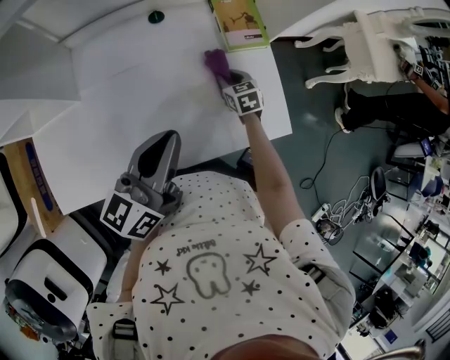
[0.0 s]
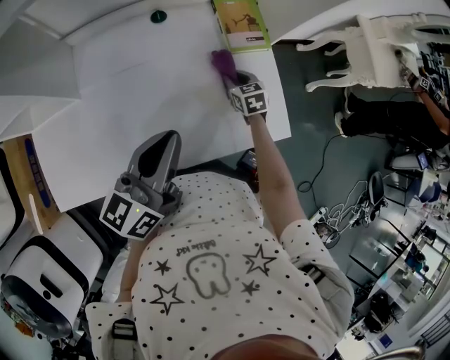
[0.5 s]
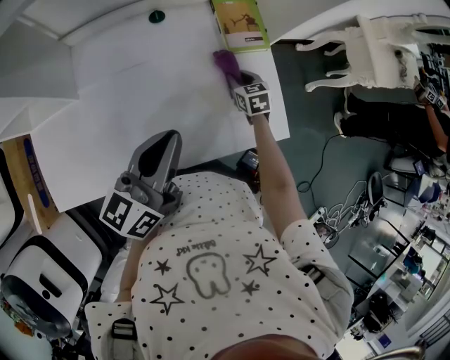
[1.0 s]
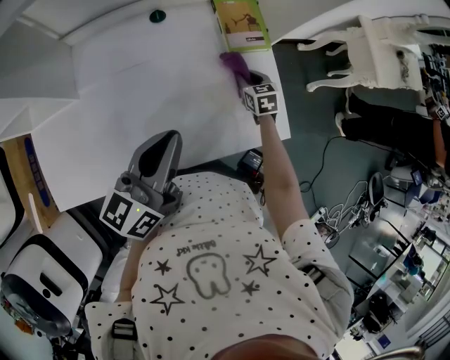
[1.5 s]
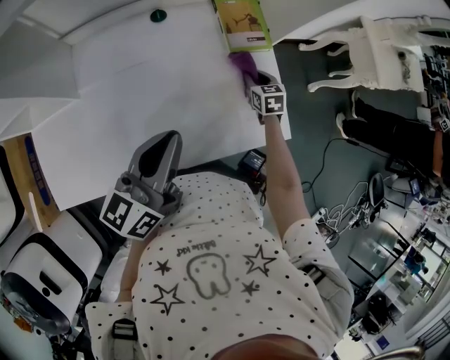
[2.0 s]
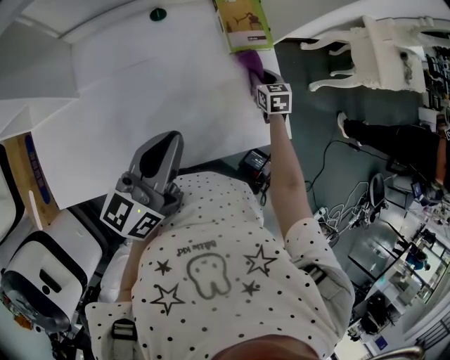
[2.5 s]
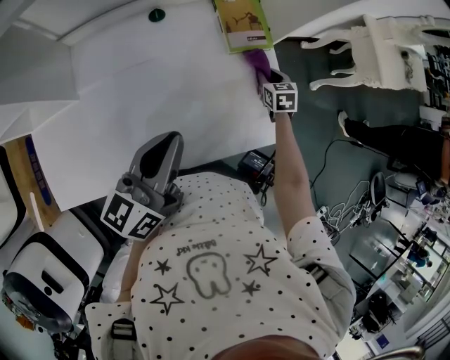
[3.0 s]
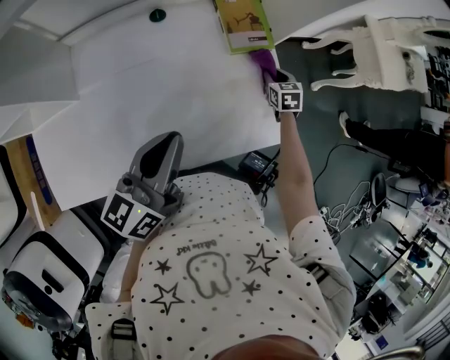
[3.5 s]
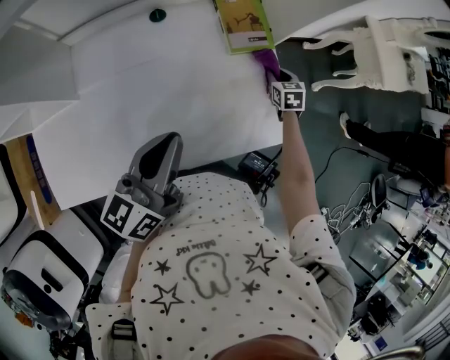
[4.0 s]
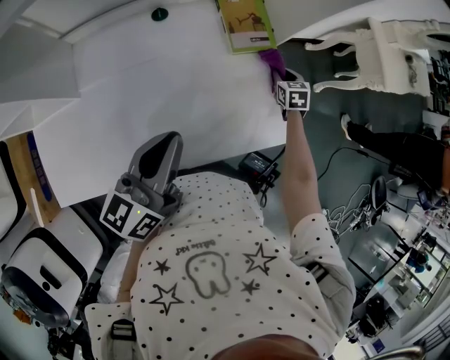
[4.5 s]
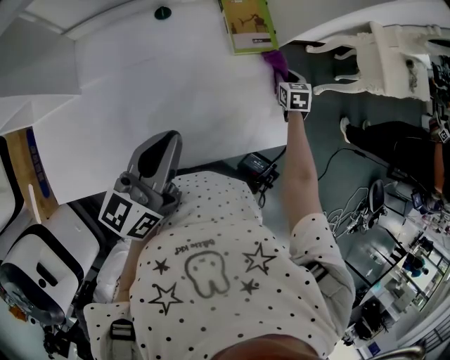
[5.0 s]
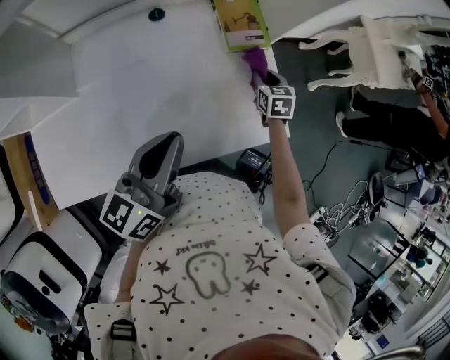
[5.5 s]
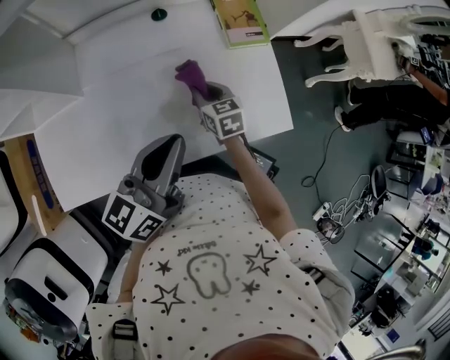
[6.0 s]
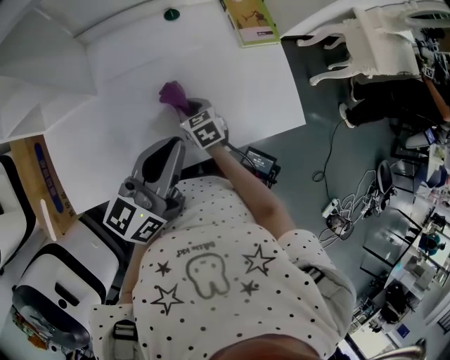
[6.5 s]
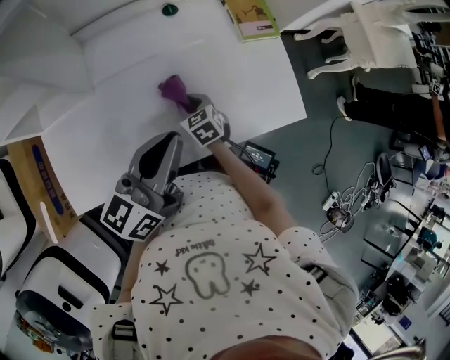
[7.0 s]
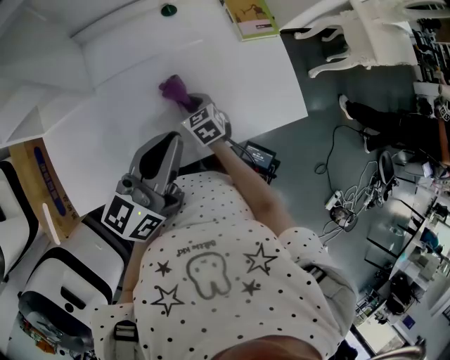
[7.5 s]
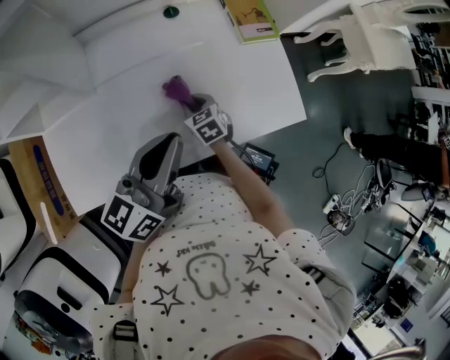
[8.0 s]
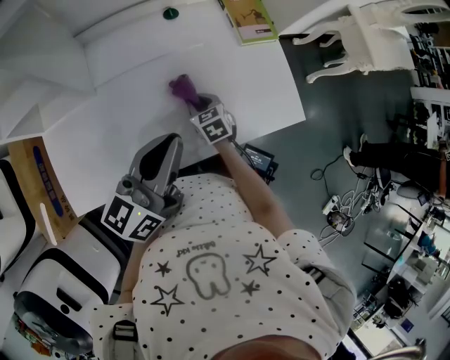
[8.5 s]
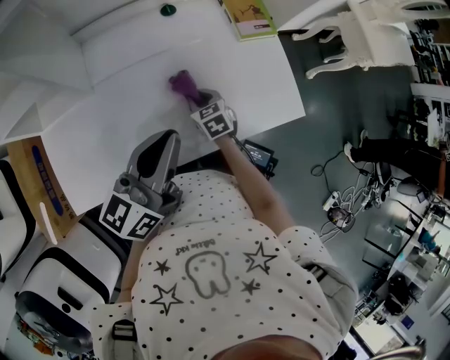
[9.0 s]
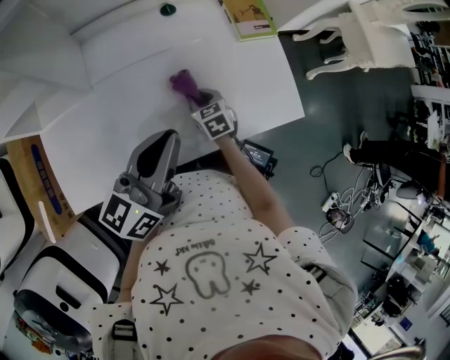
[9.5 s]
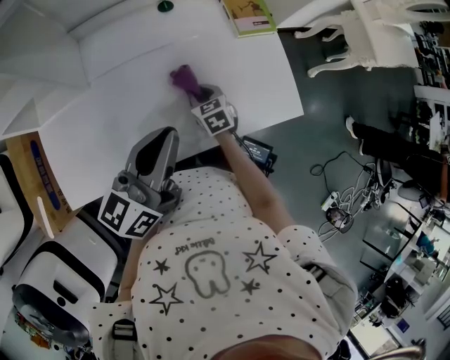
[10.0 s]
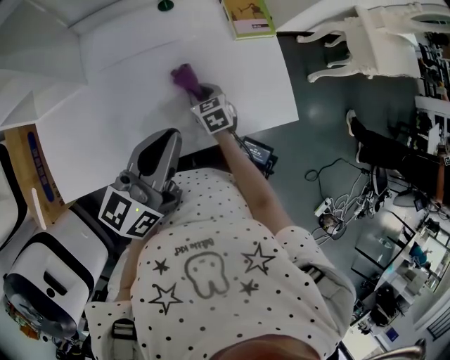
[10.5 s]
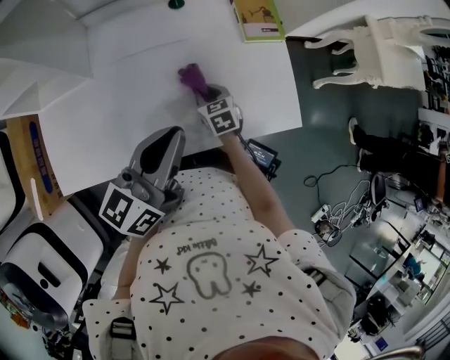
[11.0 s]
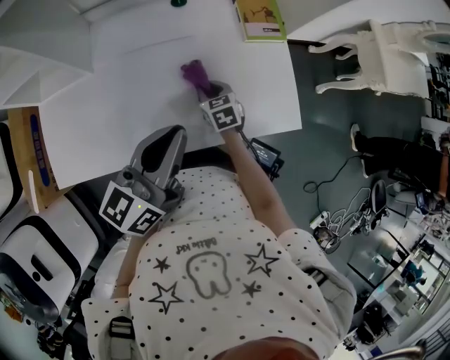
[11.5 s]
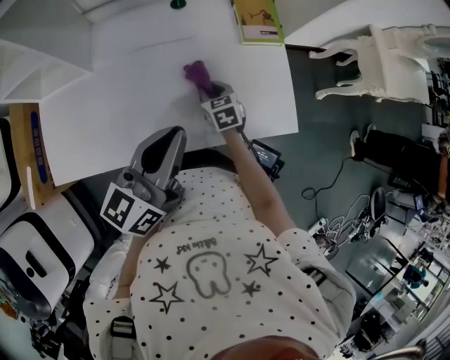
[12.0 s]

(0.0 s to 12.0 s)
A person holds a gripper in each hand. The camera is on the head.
0.0 s - 2.0 s: The right gripper is displaced to the right by some 10 cm.
2.0 s - 4.0 s: The right gripper goes approximately 5 cm to the right.
4.0 s - 6.0 s: The right gripper shifts approximately 30 cm to the left and backward; the left gripper shifts by roughly 5 cm.
6.0 s - 8.0 s: The right gripper travels to the left and downward by about 10 cm, while the left gripper is displaced to the left by about 5 cm.
8.0 s - 10.0 s: The grippers move only a little.
10.0 s - 12.0 s: Both grippers travel together to the right, approximately 5 cm.

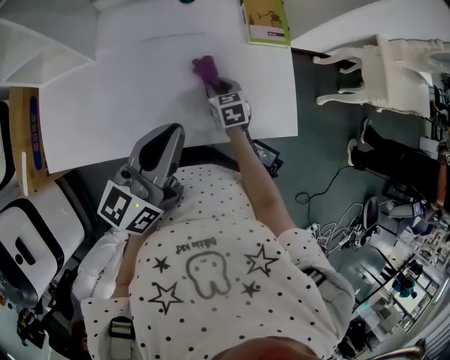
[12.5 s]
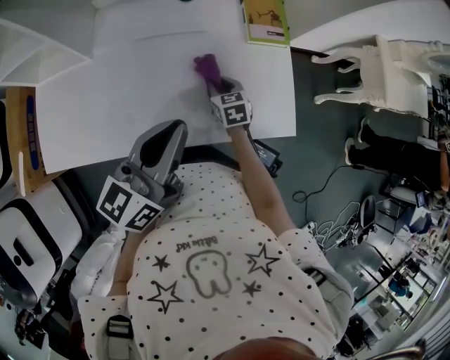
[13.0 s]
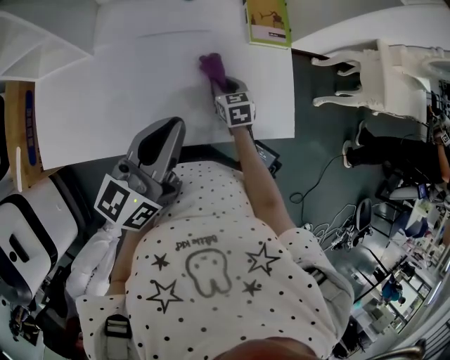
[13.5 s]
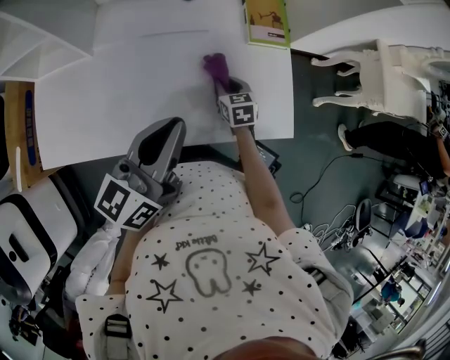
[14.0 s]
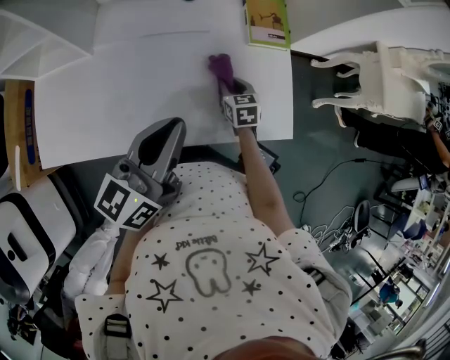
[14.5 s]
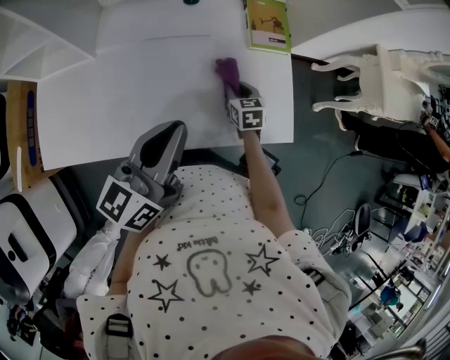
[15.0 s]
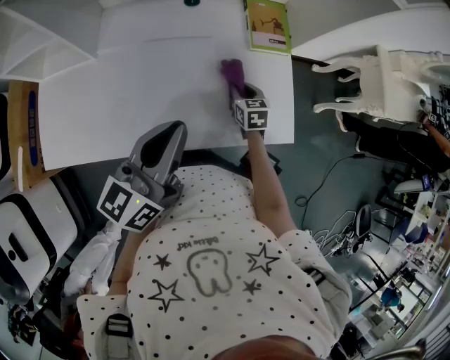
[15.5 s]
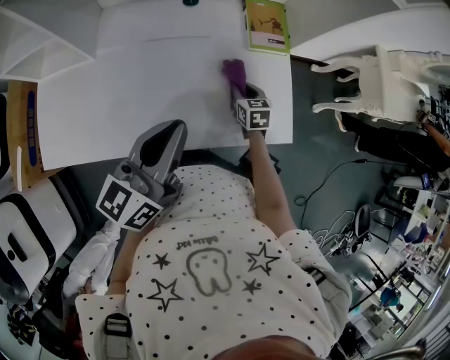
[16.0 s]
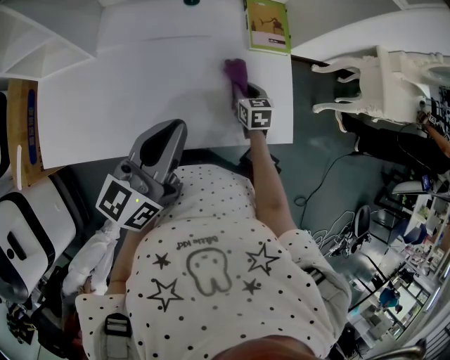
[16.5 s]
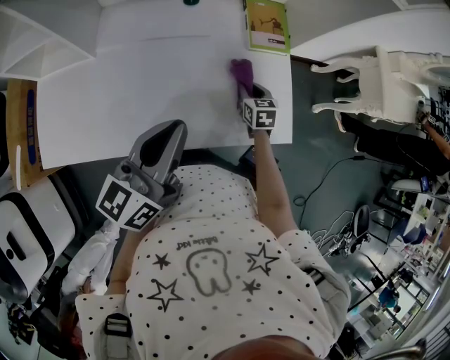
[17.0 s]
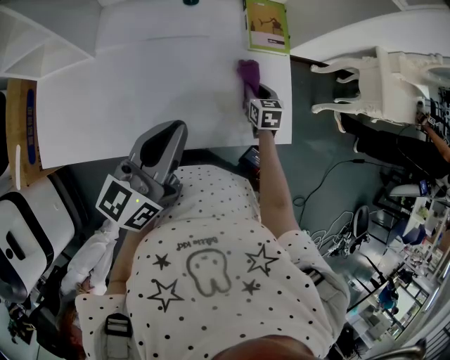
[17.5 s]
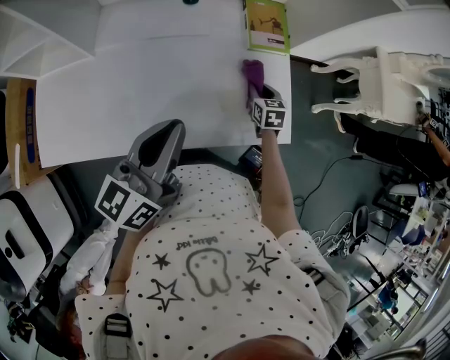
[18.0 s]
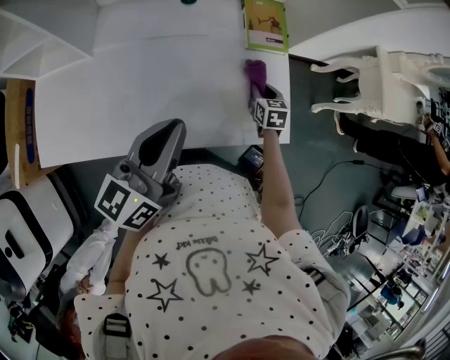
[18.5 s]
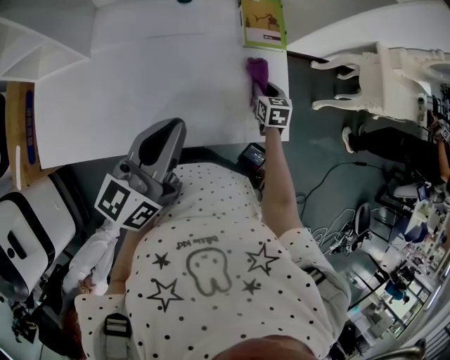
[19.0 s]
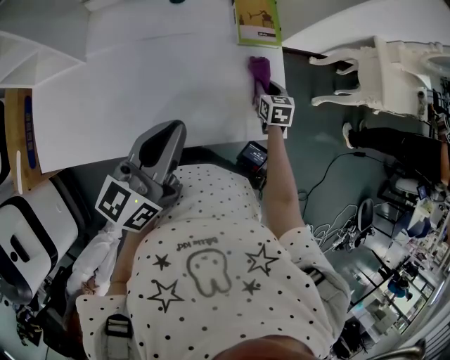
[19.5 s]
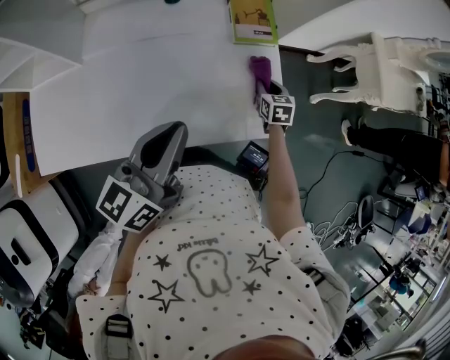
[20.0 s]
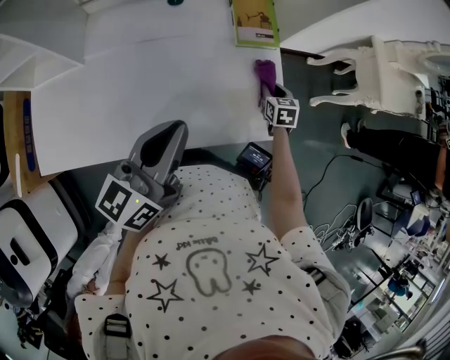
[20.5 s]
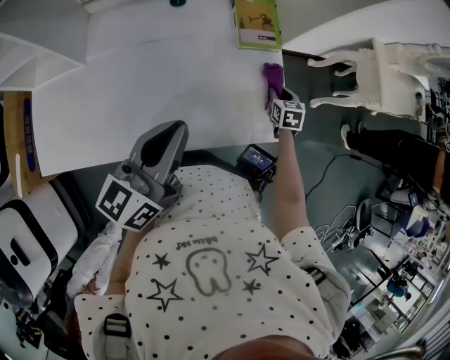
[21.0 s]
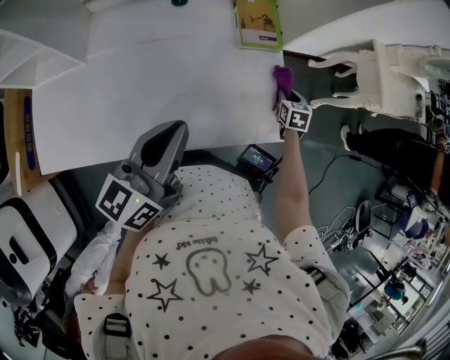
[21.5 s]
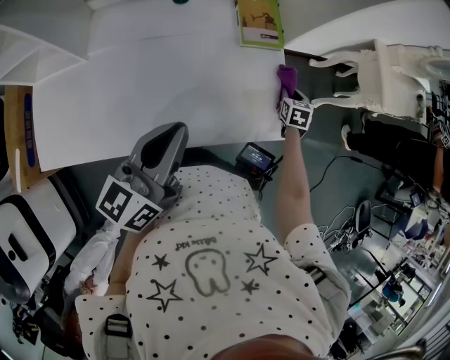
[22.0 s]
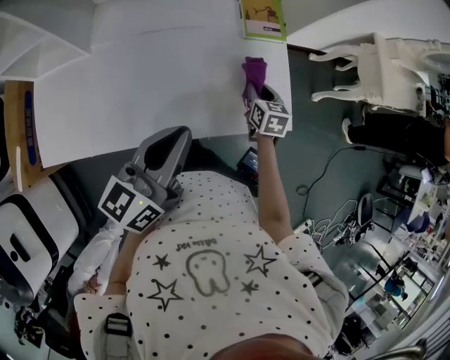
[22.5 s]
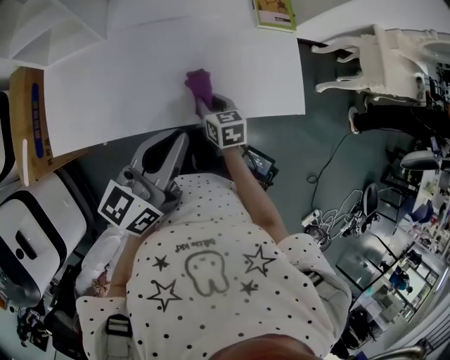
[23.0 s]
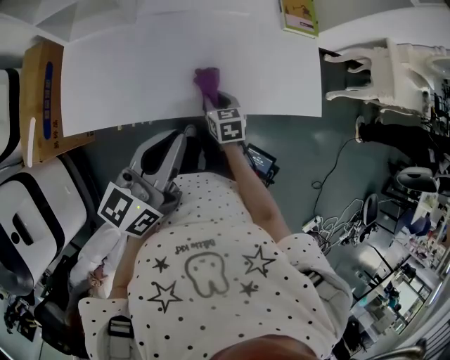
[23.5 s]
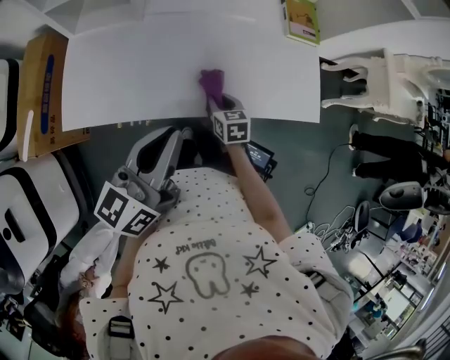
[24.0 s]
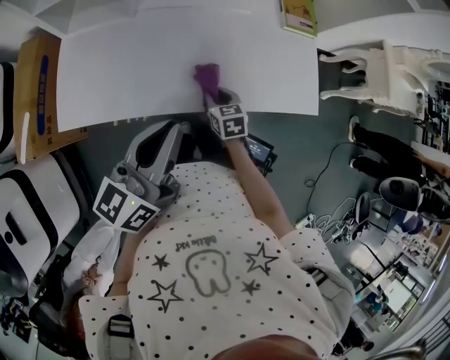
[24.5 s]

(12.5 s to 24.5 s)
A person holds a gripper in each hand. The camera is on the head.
12.5 s - 14.5 s: The right gripper moves to the right, roughly 5 cm.
14.5 s - 16.5 s: The grippers stay close to where they were, moving slightly.
16.5 s - 18.5 s: The right gripper shifts roughly 10 cm to the right.
18.5 s - 20.5 s: The right gripper shifts some 5 cm to the right.
20.5 s - 22.5 s: The right gripper goes some 10 cm to the left and backward.
22.5 s - 24.5 s: The right gripper goes roughly 30 cm to the left and backward, and turns by approximately 20 degrees, while the left gripper travels to the left and backward by some 20 cm.

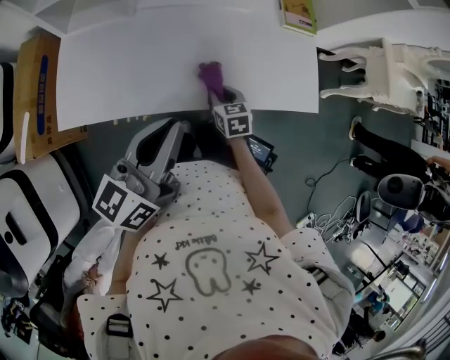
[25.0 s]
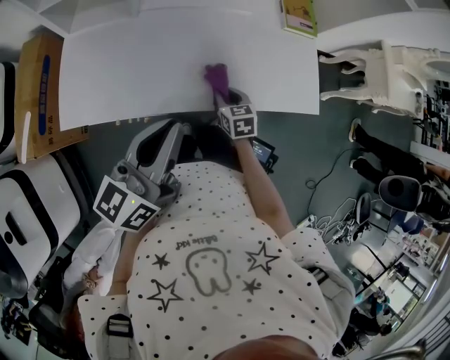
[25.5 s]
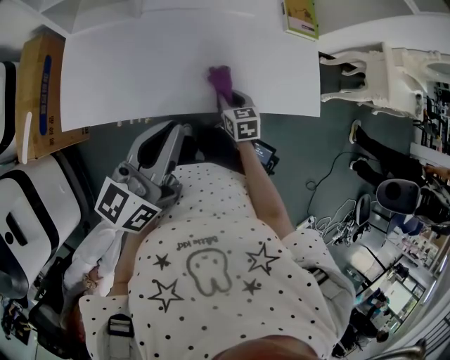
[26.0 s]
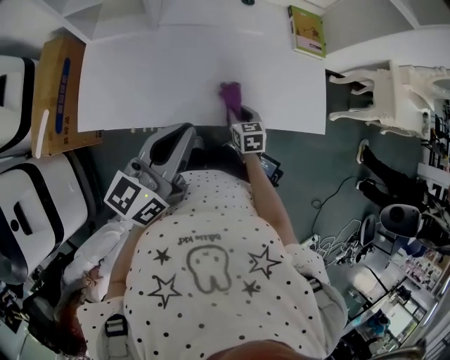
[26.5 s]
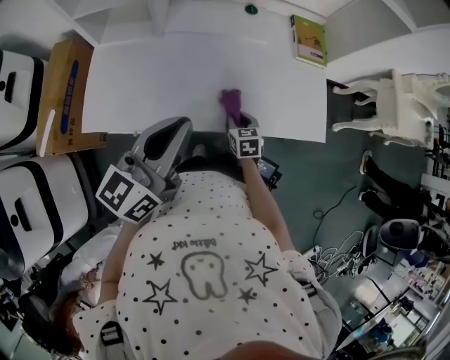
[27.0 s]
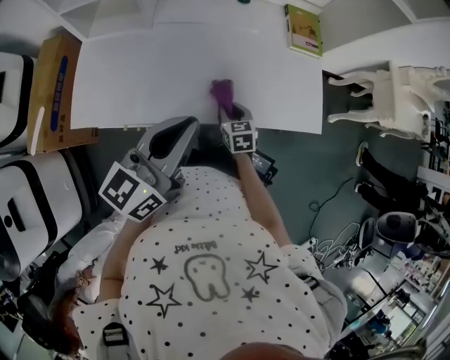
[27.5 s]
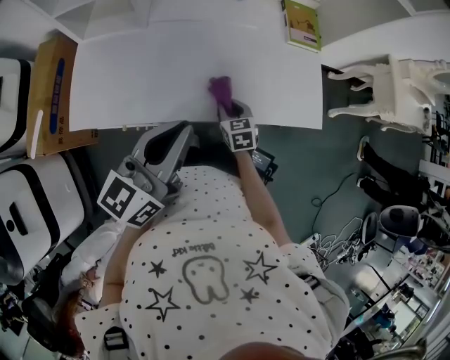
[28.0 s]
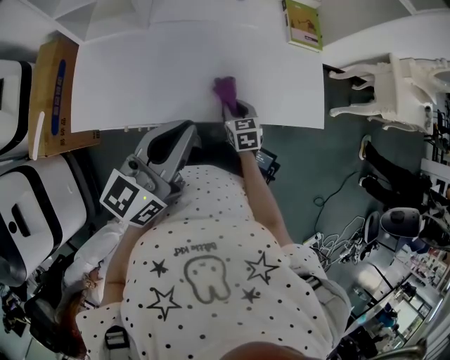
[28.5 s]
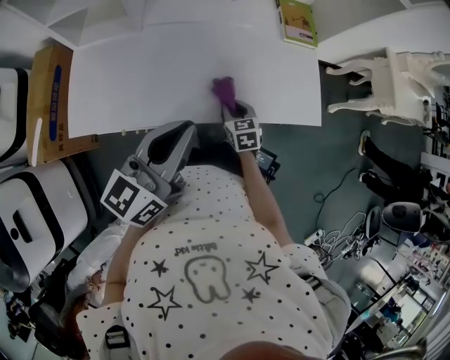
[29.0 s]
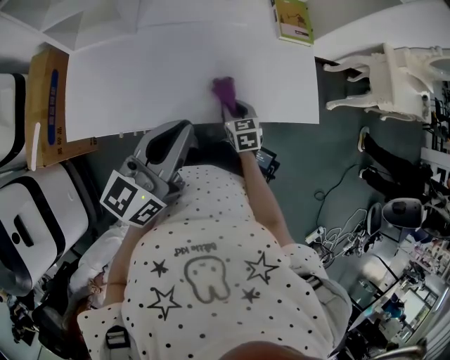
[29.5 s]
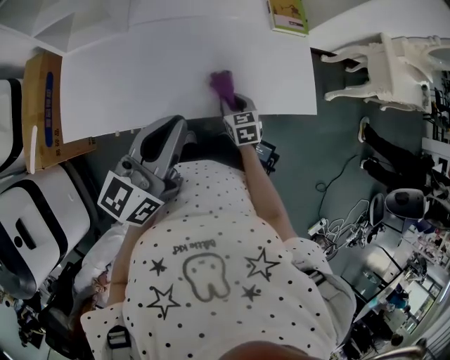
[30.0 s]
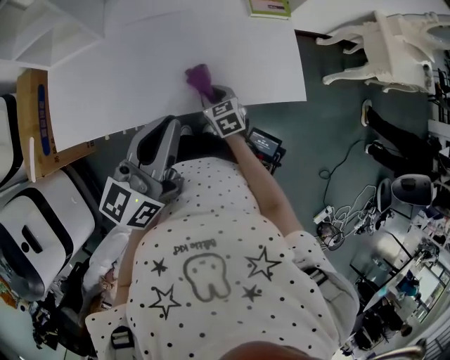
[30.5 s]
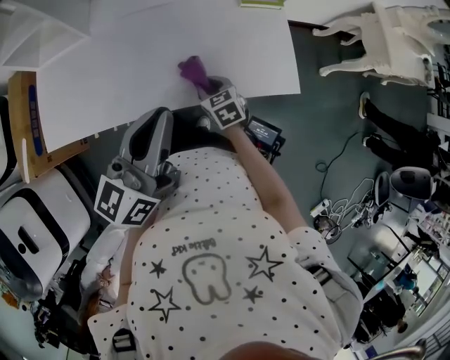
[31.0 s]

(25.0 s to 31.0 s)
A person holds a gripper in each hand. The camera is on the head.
25.0 s - 29.0 s: The grippers move only a little.
29.0 s - 31.0 s: The left gripper is displaced to the right by approximately 10 cm, while the right gripper heads to the right, covering about 5 cm.
